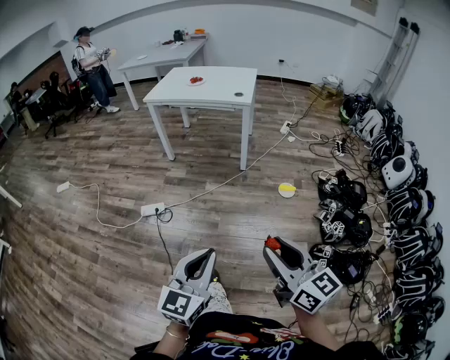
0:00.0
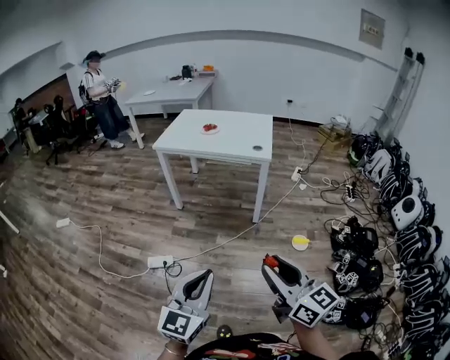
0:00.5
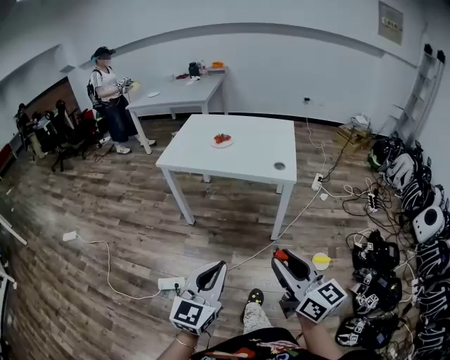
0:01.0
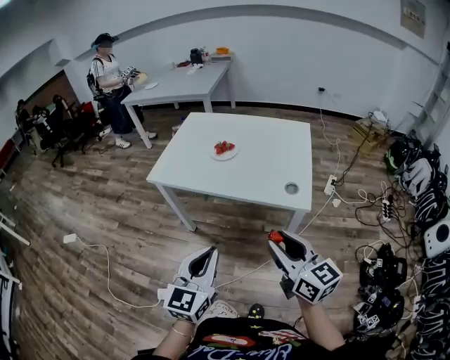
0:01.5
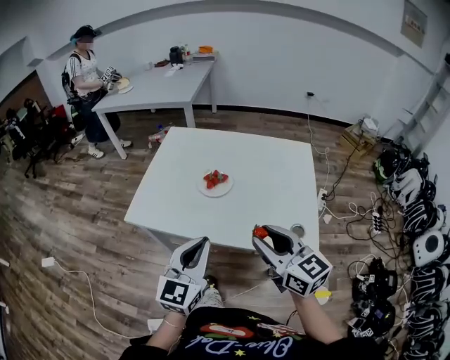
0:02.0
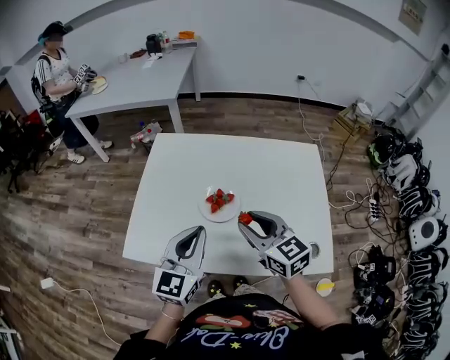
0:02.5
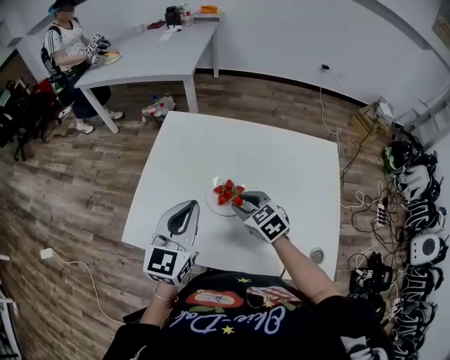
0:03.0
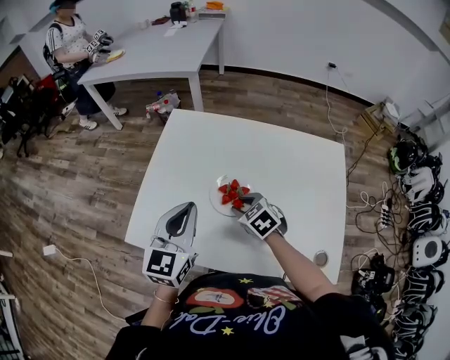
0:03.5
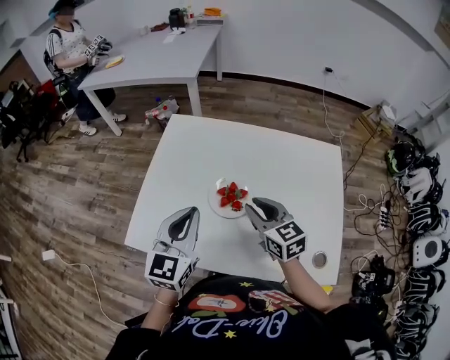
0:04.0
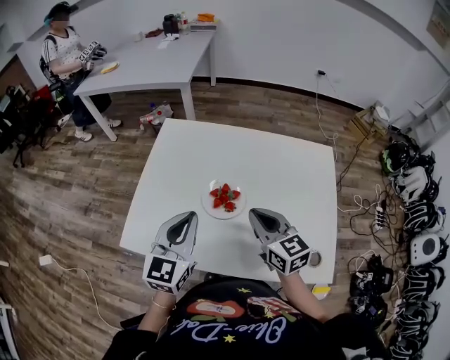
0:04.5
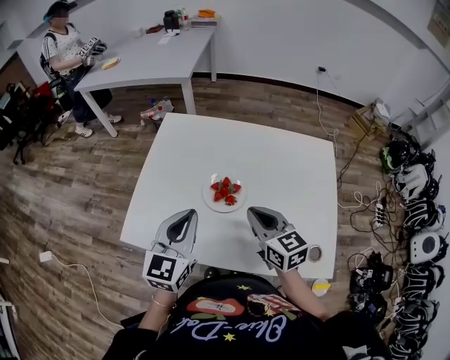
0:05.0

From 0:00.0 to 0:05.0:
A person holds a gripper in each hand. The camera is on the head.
From 0:00.0 to 0:02.5: The pair of grippers is taken forward, roughly 1 m. The right gripper changes its angle by roughly 20 degrees.
From 0:02.5 to 0:05.0: The right gripper travels downward and back again, approximately 20 cm each way, and closes its fingers.

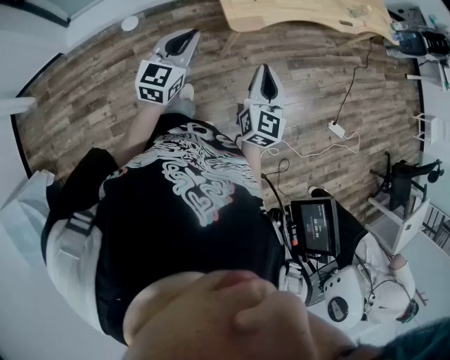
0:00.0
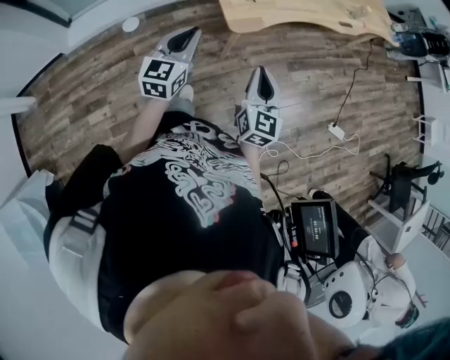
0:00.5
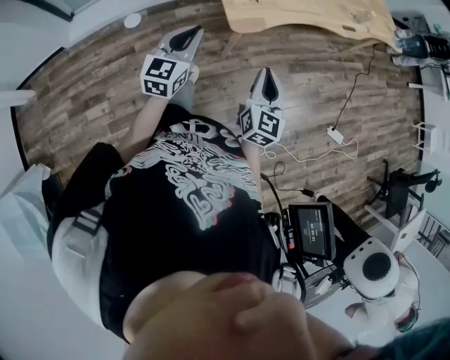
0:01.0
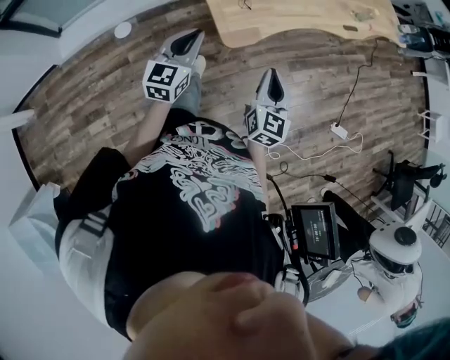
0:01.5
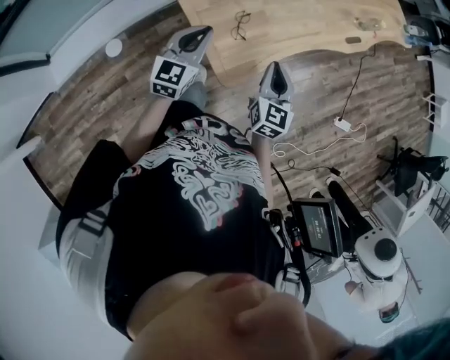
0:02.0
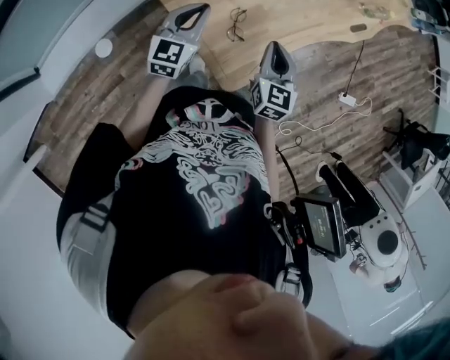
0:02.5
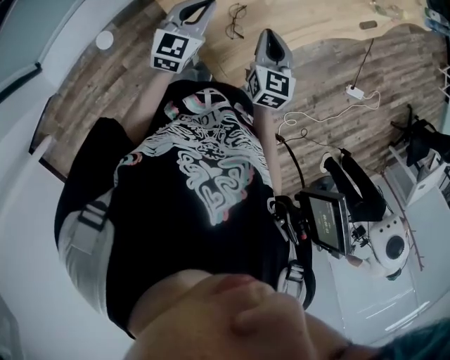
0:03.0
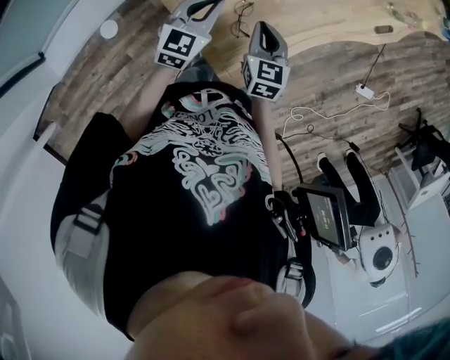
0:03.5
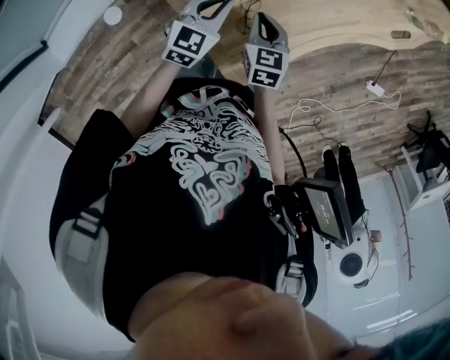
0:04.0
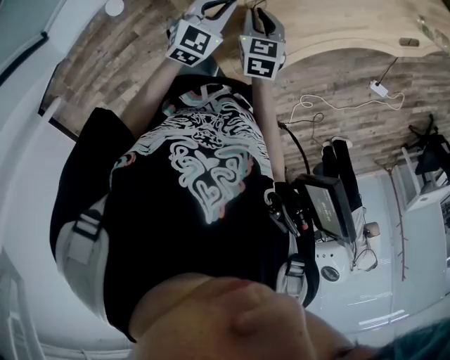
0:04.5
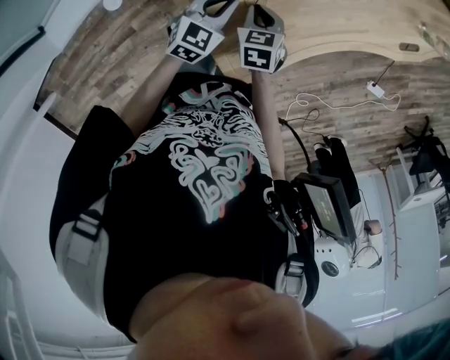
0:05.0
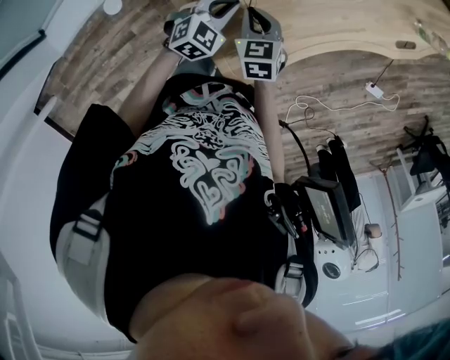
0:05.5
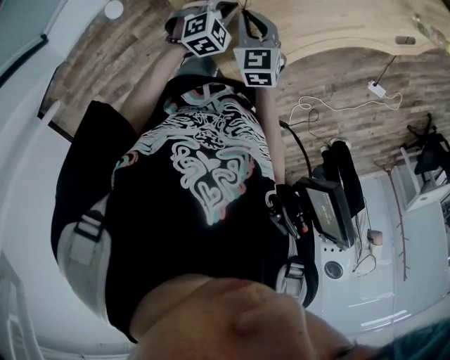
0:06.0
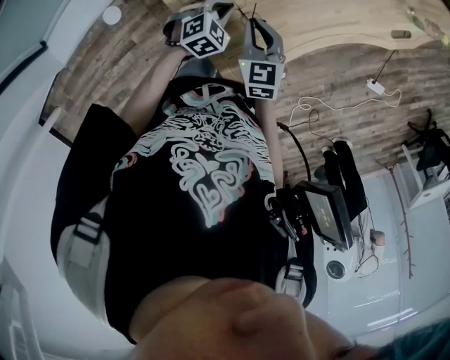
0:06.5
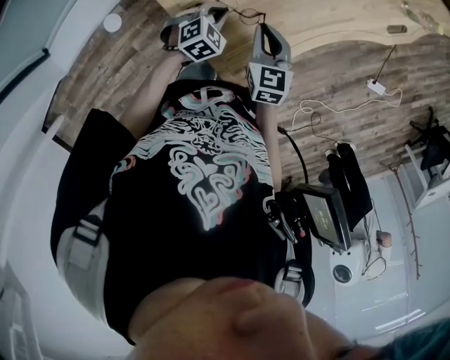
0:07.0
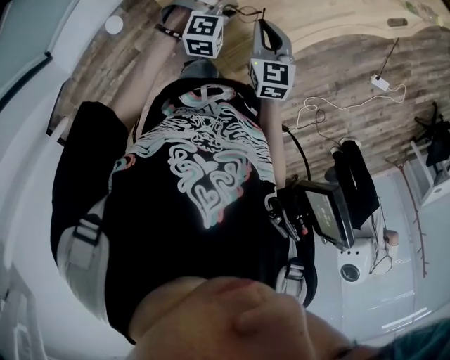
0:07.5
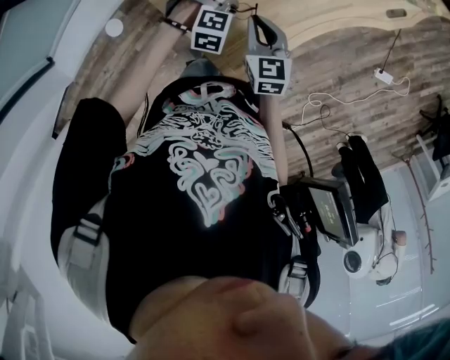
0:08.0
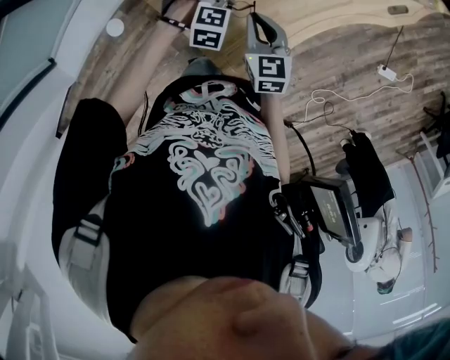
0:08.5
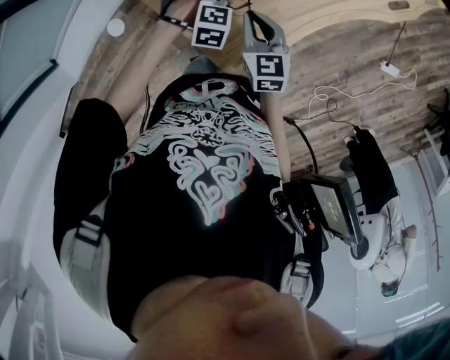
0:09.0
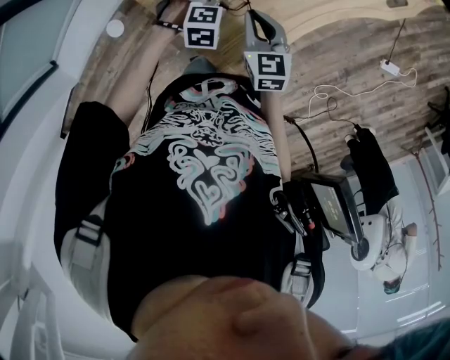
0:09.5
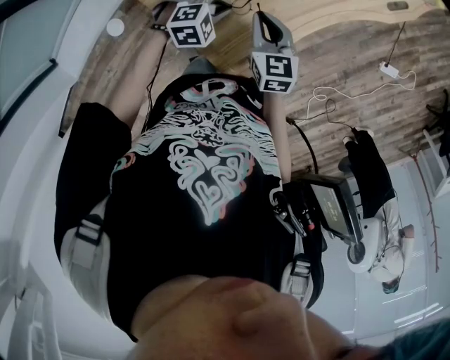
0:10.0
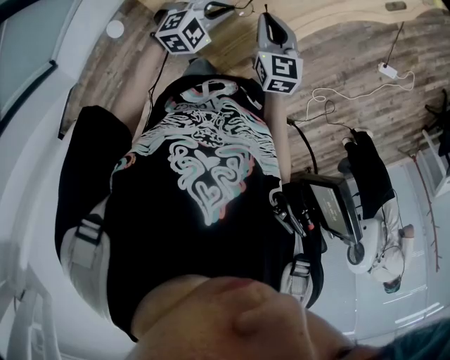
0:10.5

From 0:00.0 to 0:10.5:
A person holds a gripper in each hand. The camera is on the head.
From 0:00.0 to 0:02.0: Both grippers are carried forward, about 40 cm.
From 0:02.0 to 0:04.0: The left gripper shifts about 30 cm forward and downward, and rotates roughly 20 degrees. Meanwhile the right gripper moves forward, downward and to the left, roughly 35 cm, and turns by roughly 30 degrees.
From 0:04.0 to 0:06.5: The left gripper goes some 10 cm downward, and turns by some 30 degrees.
From 0:06.5 to 0:08.5: The left gripper changes place by about 5 cm, and rolls clockwise, seen from behind, by roughly 40 degrees. The right gripper shifts by some 5 cm.
From 0:08.5 to 0:10.5: The left gripper heads upward, covering about 5 cm, and rotates some 40 degrees.

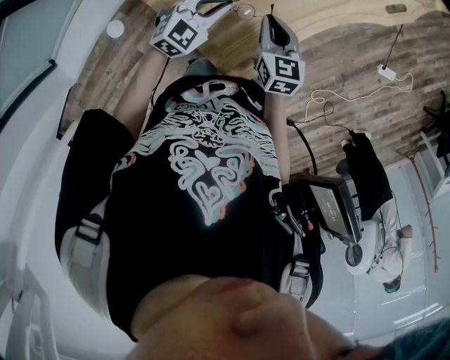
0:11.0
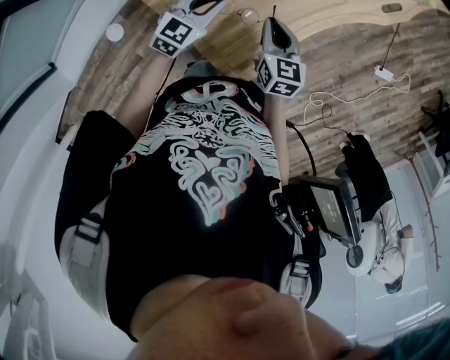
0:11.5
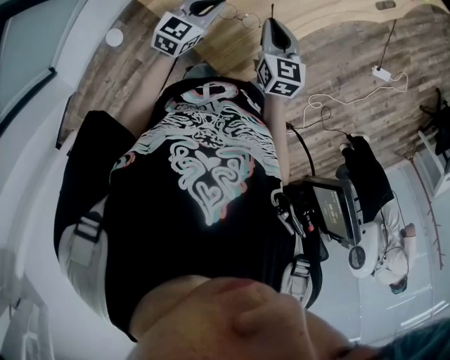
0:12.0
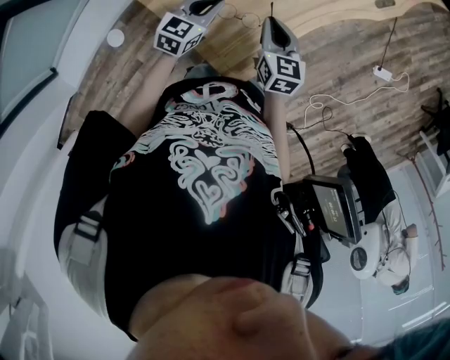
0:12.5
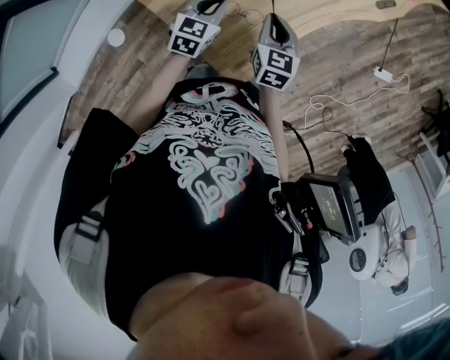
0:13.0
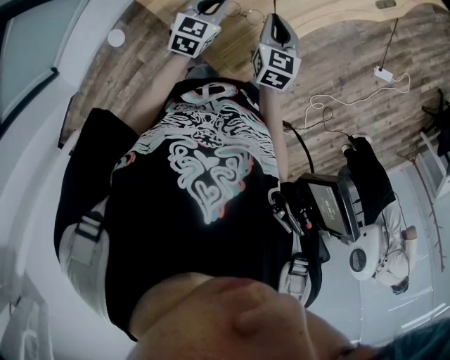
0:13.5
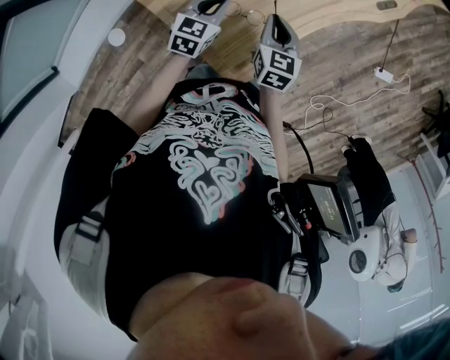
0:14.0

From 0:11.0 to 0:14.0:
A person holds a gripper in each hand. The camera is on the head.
From 0:11.0 to 0:12.5: The left gripper rotates approximately 30 degrees.
From 0:12.5 to 0:14.0: There are only small adjustments of the grippers.

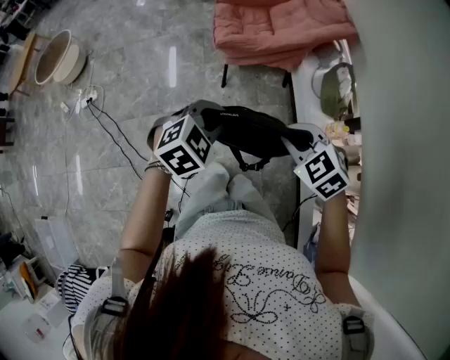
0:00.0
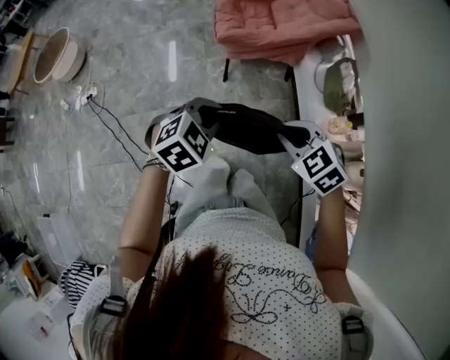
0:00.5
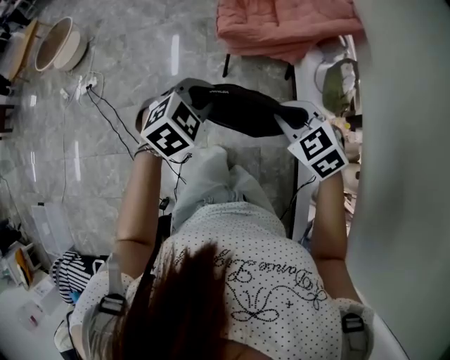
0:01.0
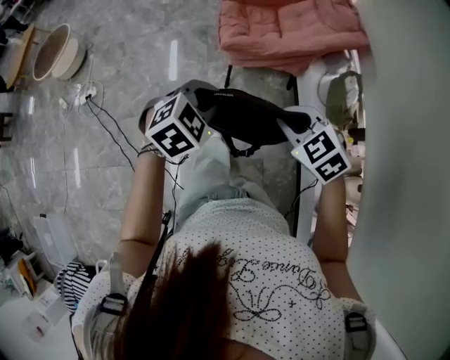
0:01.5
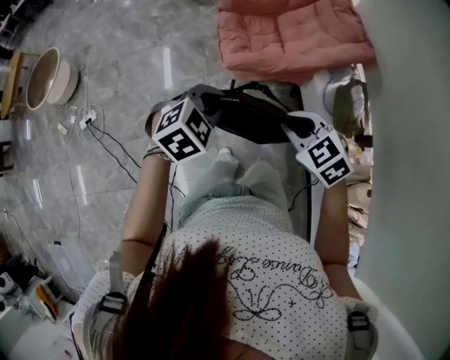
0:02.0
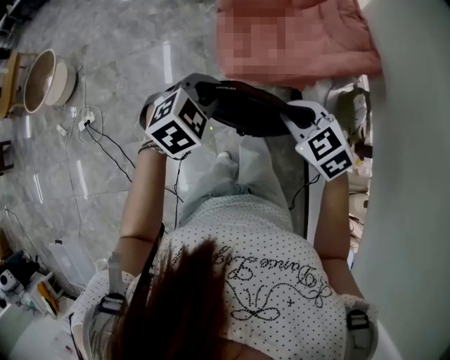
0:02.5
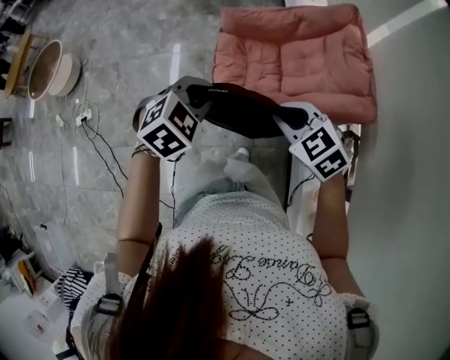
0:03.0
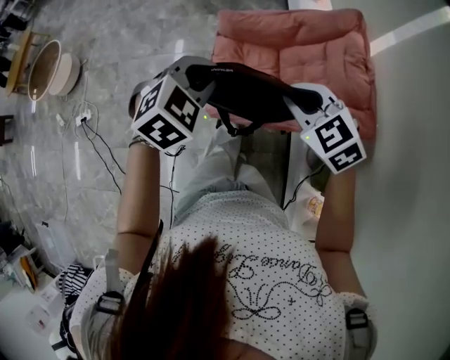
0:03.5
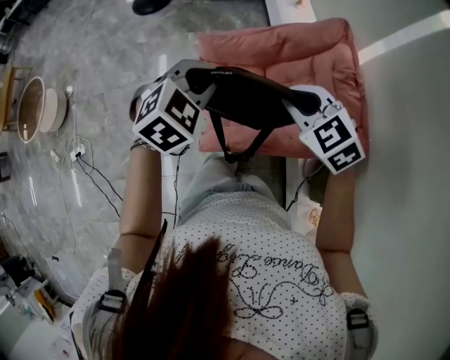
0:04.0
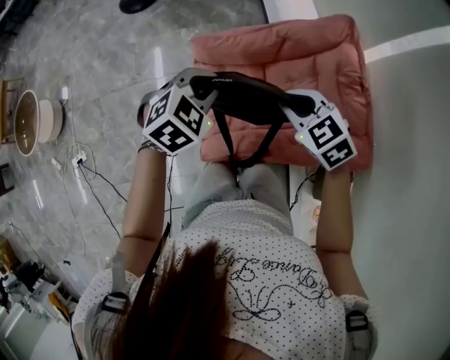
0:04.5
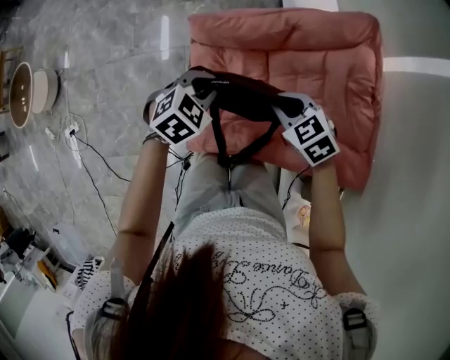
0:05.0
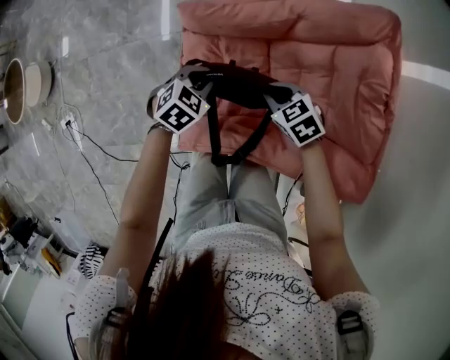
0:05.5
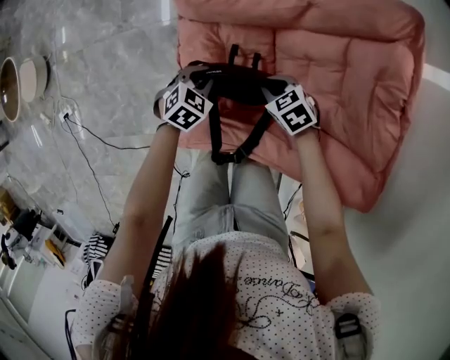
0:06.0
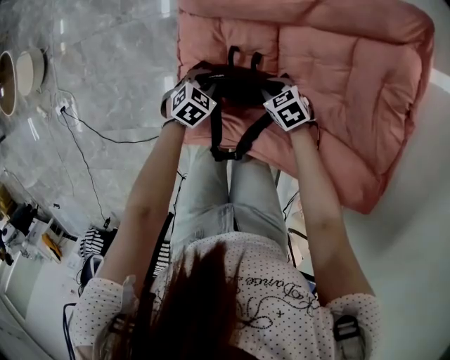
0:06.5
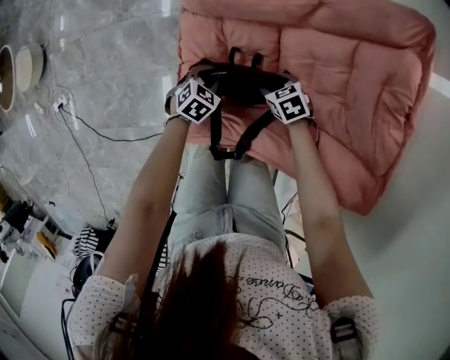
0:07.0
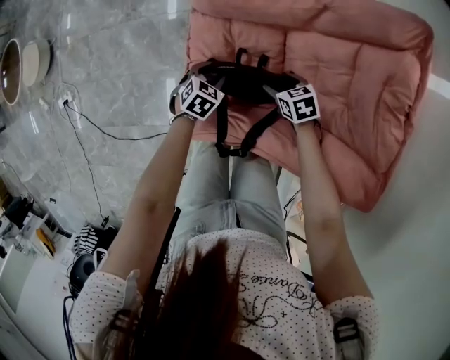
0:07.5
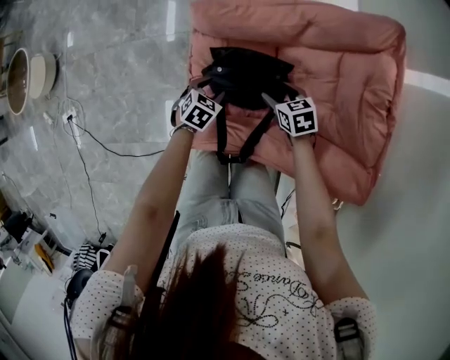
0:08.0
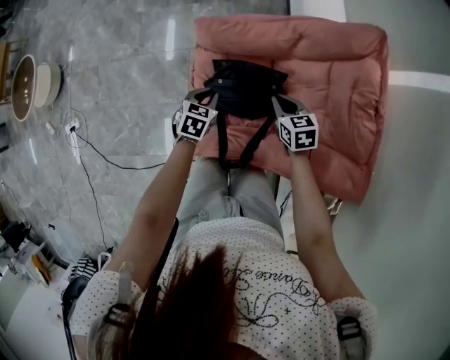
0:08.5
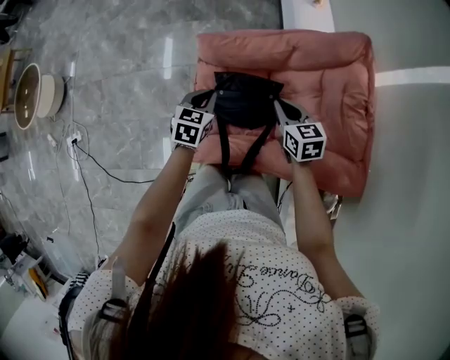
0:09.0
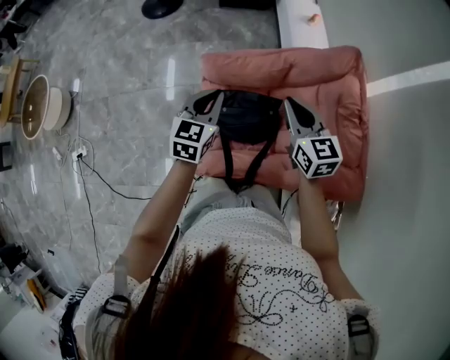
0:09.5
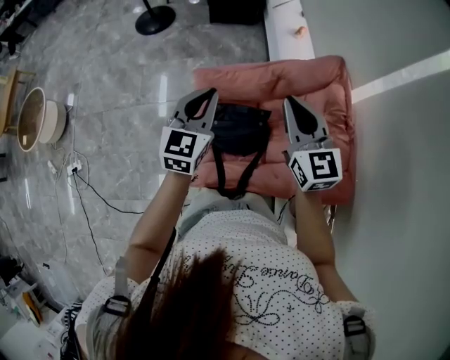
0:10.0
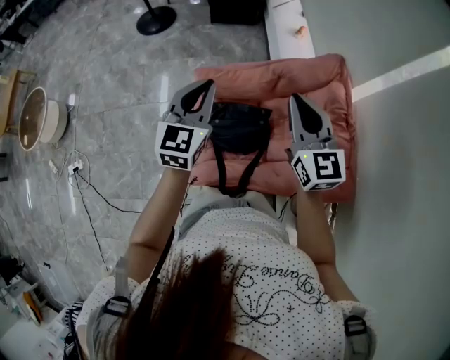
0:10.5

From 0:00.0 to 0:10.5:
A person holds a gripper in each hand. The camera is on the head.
From 0:00.0 to 0:02.0: The grippers both shift forward and to the left by approximately 25 cm.
From 0:02.0 to 0:04.0: The two grippers travel together, forward, about 50 cm.
From 0:04.0 to 0:06.5: The two grippers go some 50 cm downward. The left gripper changes its angle by roughly 30 degrees, while the right gripper changes its angle by roughly 40 degrees.
From 0:06.5 to 0:08.5: Both grippers travel together upward, about 15 cm. The right gripper changes its angle by approximately 30 degrees, and opens and closes again, while the left gripper swivels some 20 degrees, and opens and closes again.
From 0:08.5 to 0:10.5: Both grippers travel together upward, roughly 35 cm. The left gripper tips its fingers upward by approximately 40 degrees; the right gripper angles its fingers upward, by roughly 40 degrees.
